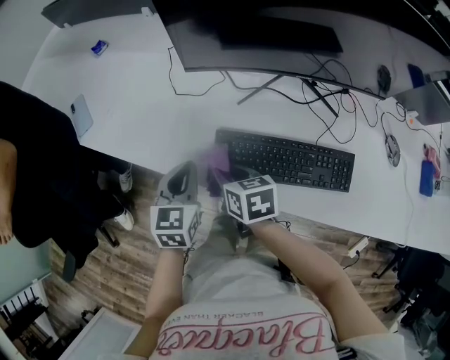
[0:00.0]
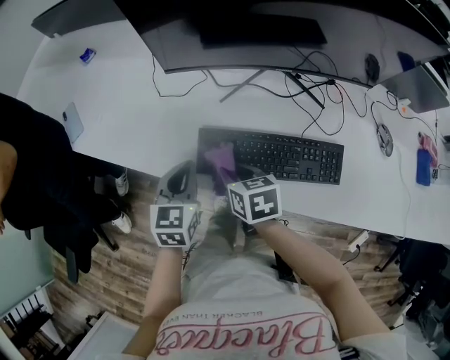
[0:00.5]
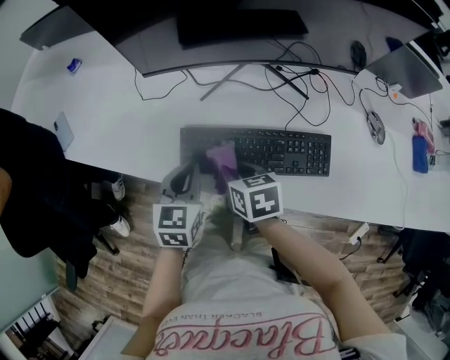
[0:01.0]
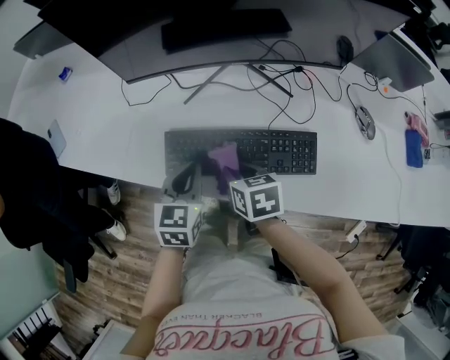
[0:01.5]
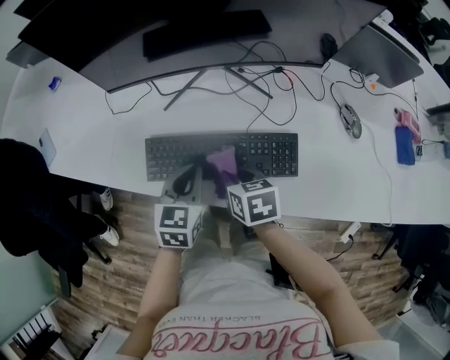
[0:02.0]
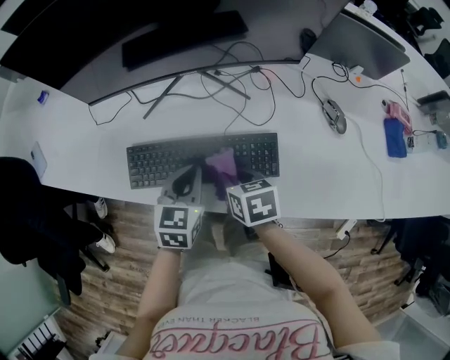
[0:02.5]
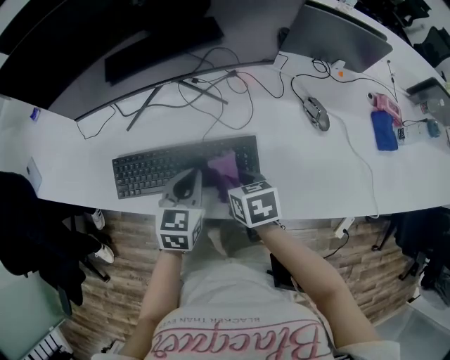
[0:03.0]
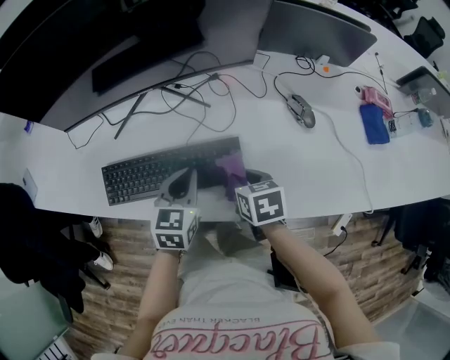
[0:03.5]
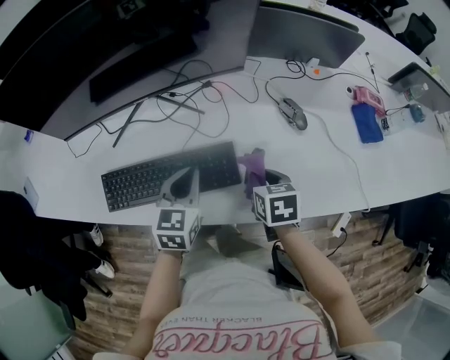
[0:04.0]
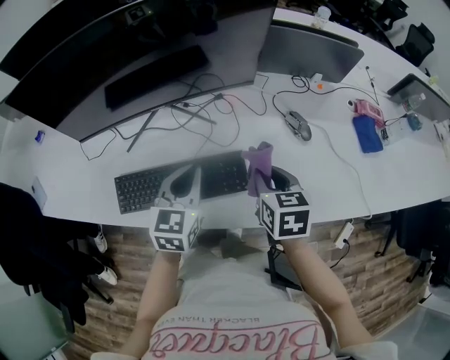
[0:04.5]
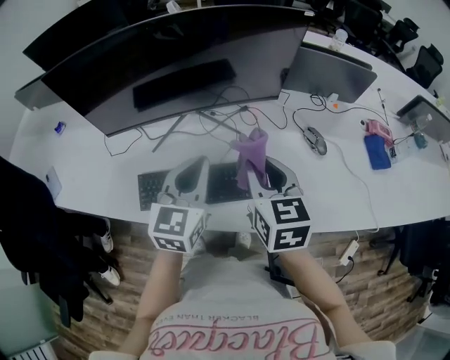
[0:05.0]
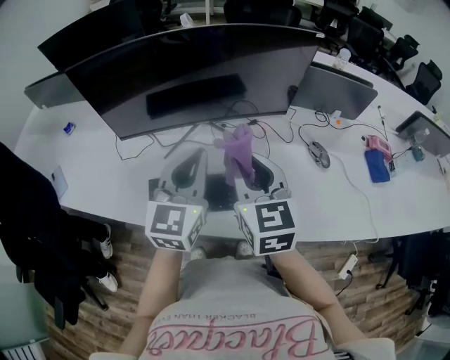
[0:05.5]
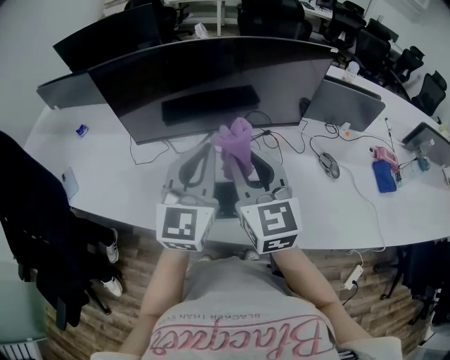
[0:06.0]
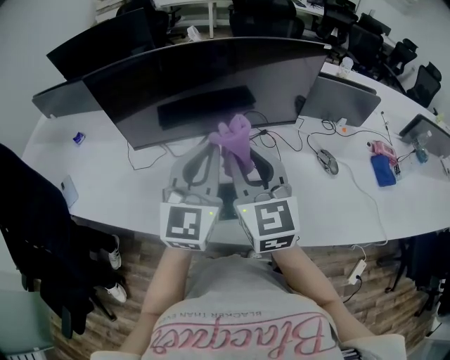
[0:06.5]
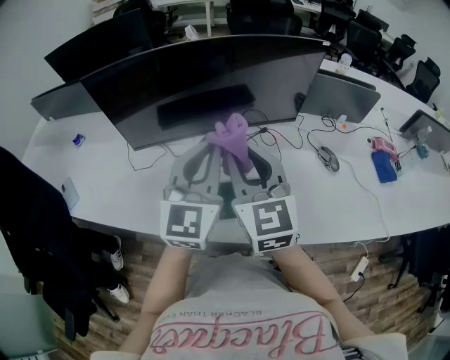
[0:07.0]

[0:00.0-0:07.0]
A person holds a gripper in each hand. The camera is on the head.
0:00.0 to 0:02.0: Both grippers travel together to the right, about 20 cm.
0:02.0 to 0:03.5: Both grippers move to the right, some 15 cm.
0:03.5 to 0:05.0: The two grippers go roughly 20 cm upward. The right gripper swivels some 30 degrees; the left gripper rotates roughly 20 degrees.
0:05.0 to 0:07.0: The left gripper heads upward and to the left, covering roughly 10 cm, and swivels approximately 20 degrees. Meanwhile the right gripper is displaced to the left and upward by roughly 15 cm, and changes its angle by some 20 degrees.

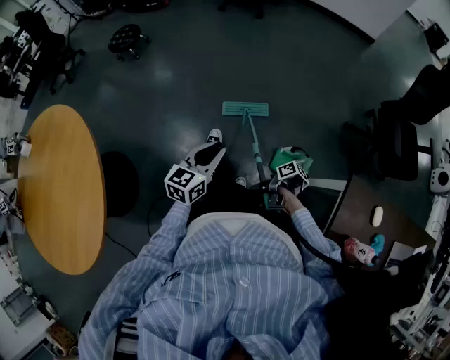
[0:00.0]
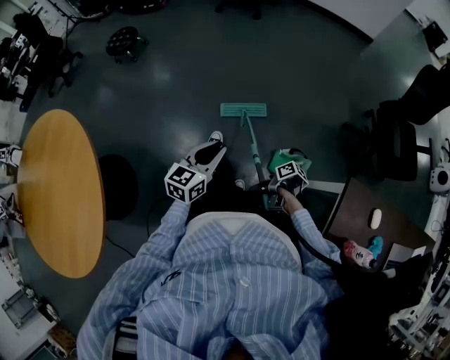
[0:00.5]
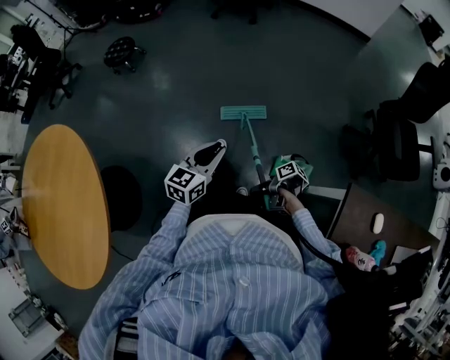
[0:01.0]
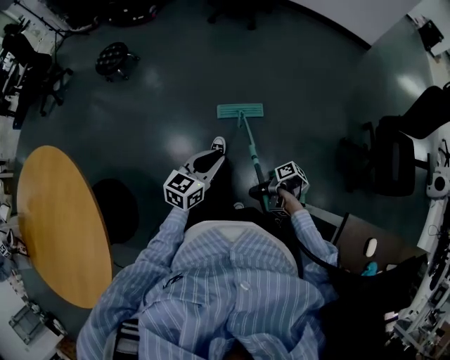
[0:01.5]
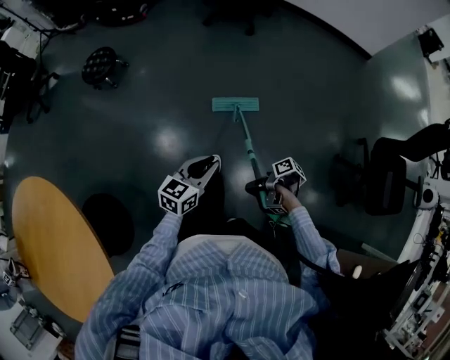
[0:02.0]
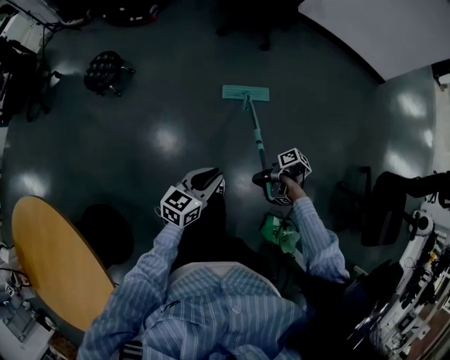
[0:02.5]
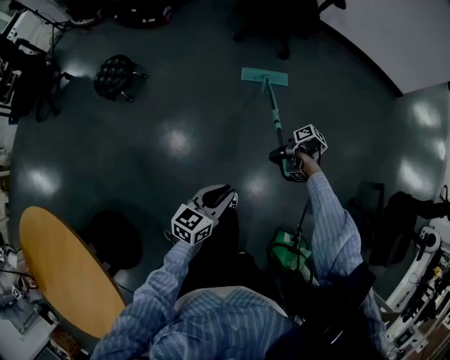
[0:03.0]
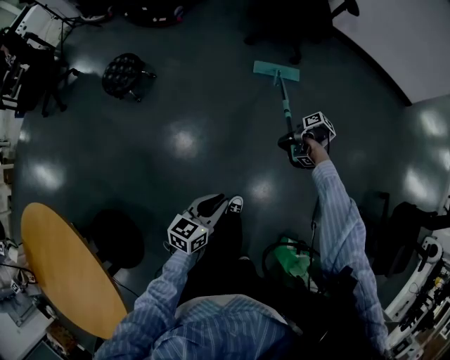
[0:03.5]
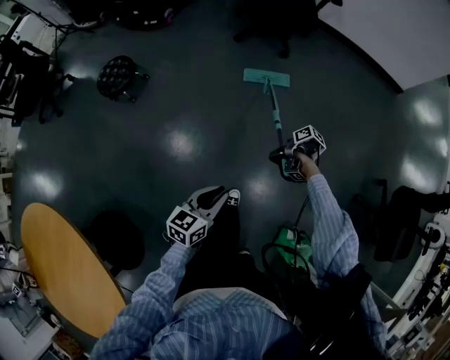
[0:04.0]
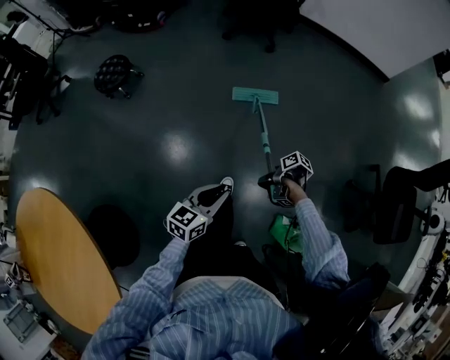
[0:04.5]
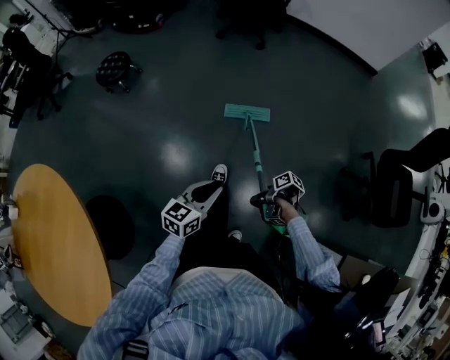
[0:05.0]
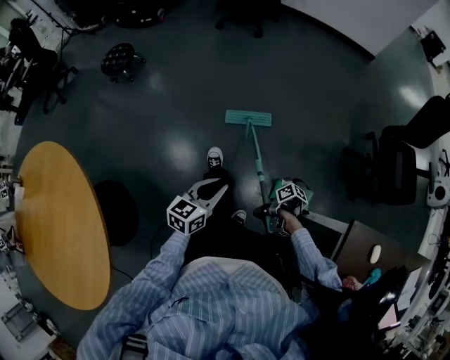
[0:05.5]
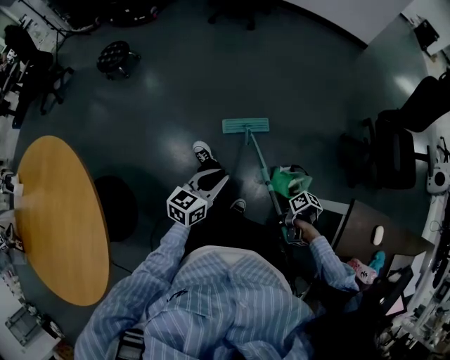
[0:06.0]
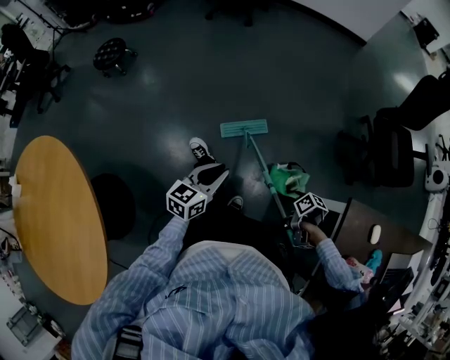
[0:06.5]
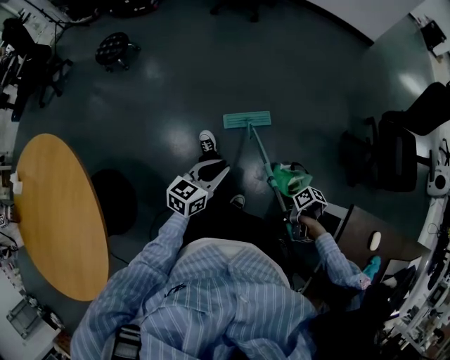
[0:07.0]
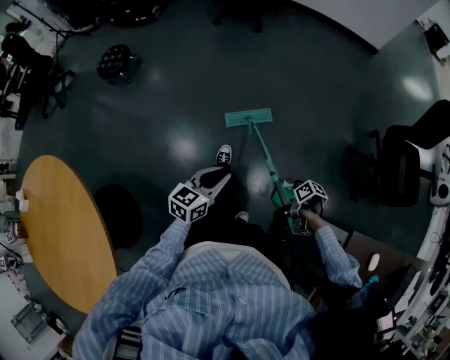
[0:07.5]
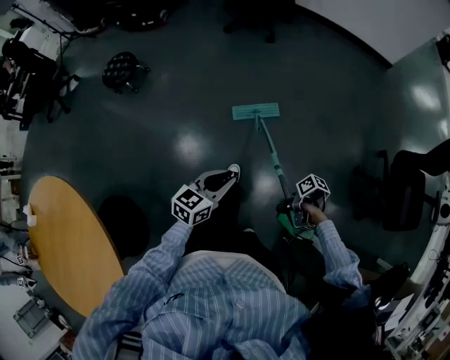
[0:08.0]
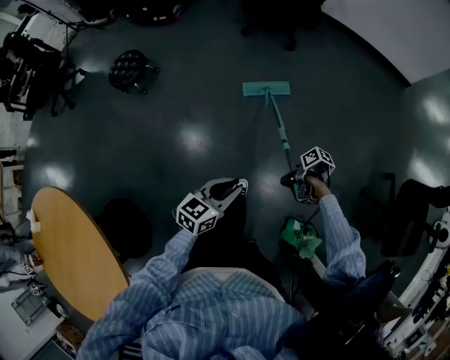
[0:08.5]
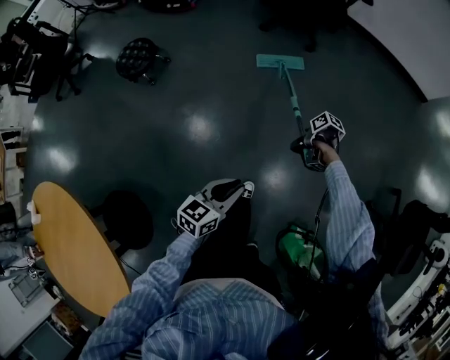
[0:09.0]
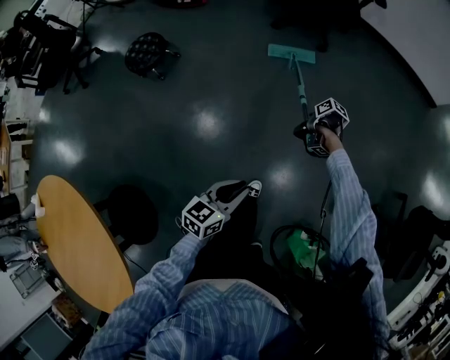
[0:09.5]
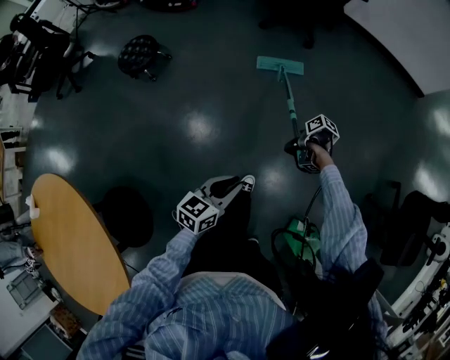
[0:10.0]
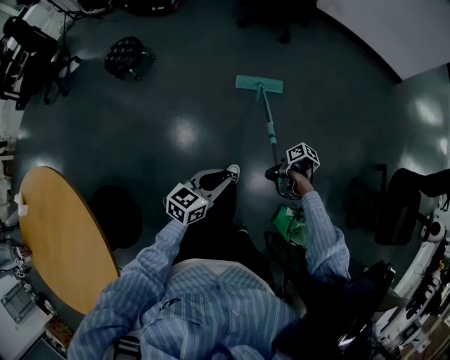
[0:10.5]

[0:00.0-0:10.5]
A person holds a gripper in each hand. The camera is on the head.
0:00.0 to 0:02.0: The left gripper changes place by approximately 35 cm.
0:02.0 to 0:04.0: The left gripper moves some 15 cm.
0:04.0 to 0:06.5: The left gripper shifts by approximately 40 cm.
0:06.5 to 0:08.5: The left gripper ends up roughly 40 cm from where it was.
0:08.5 to 0:10.5: The left gripper changes place by some 10 cm.

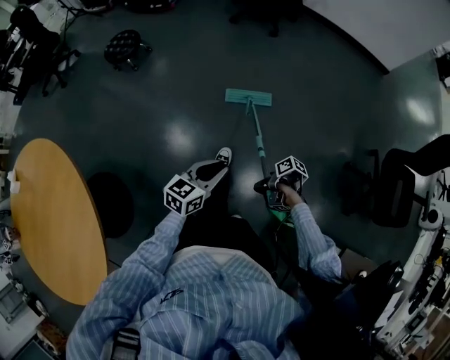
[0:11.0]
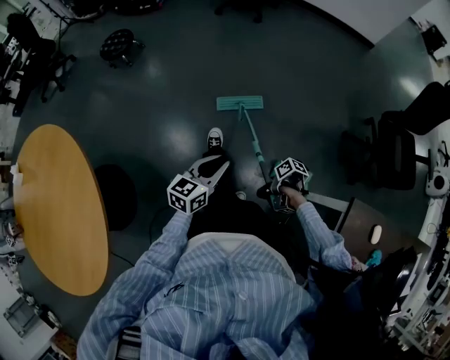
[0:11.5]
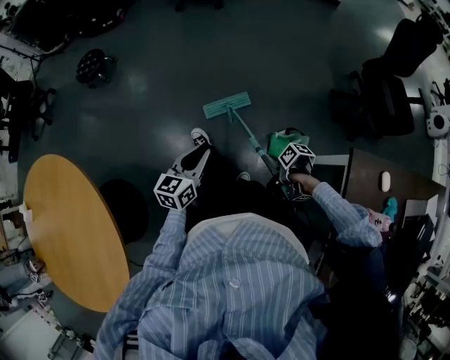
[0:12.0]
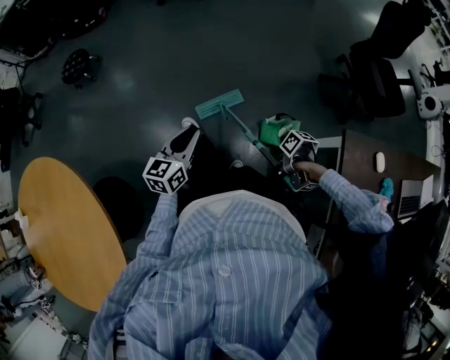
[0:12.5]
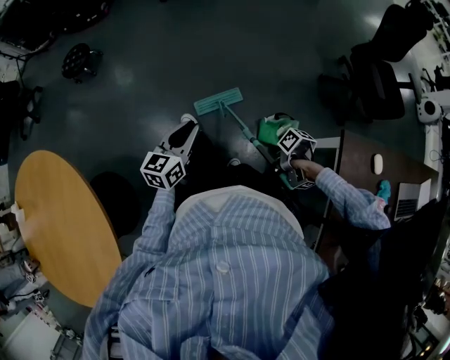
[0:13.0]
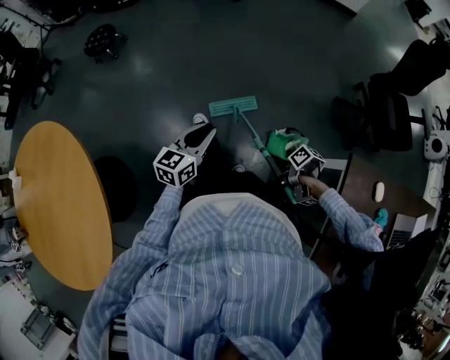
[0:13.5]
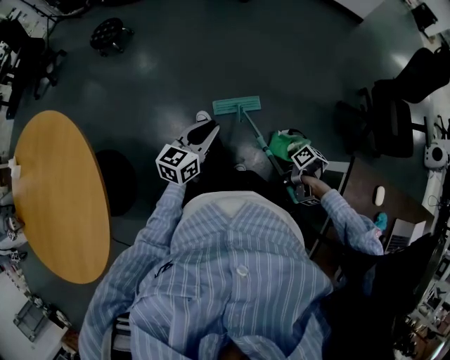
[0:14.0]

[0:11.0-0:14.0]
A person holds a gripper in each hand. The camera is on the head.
0:11.0 to 0:12.5: The left gripper moves about 20 cm.

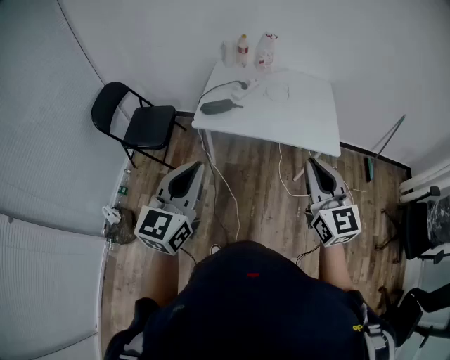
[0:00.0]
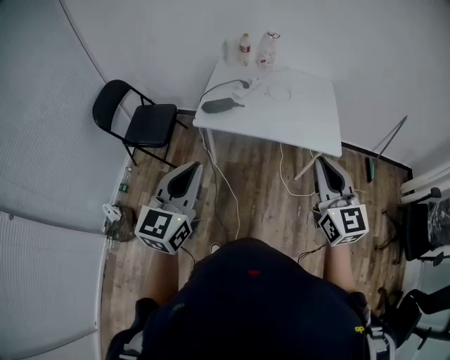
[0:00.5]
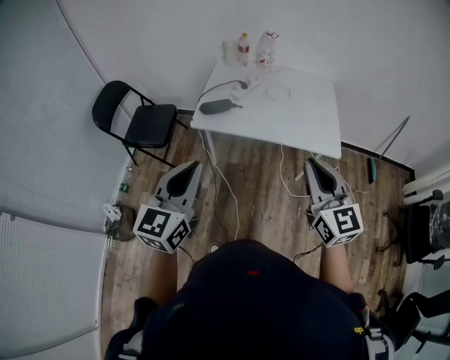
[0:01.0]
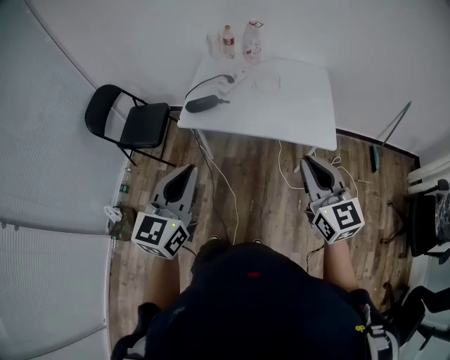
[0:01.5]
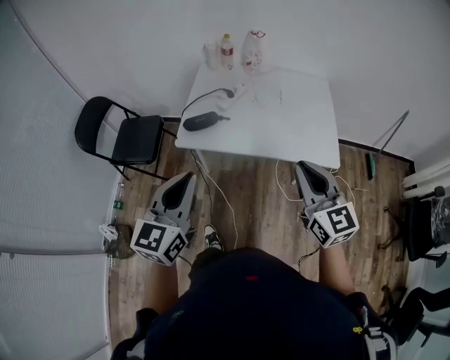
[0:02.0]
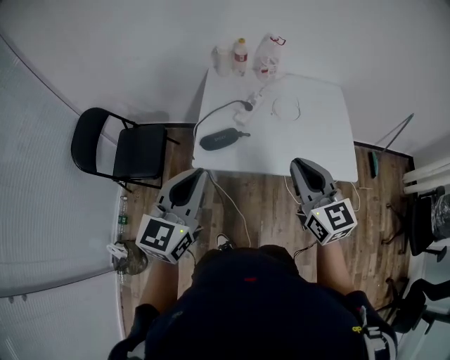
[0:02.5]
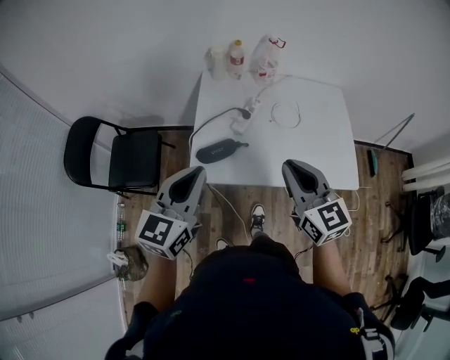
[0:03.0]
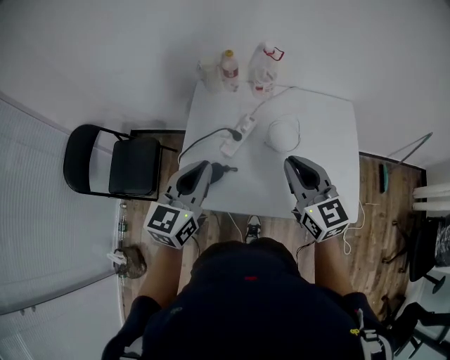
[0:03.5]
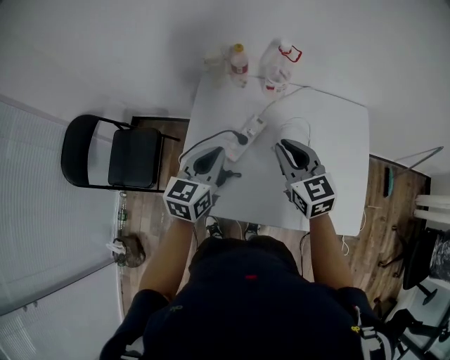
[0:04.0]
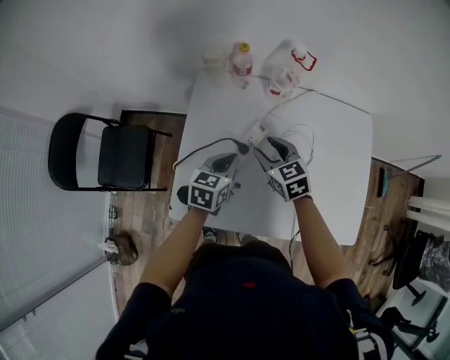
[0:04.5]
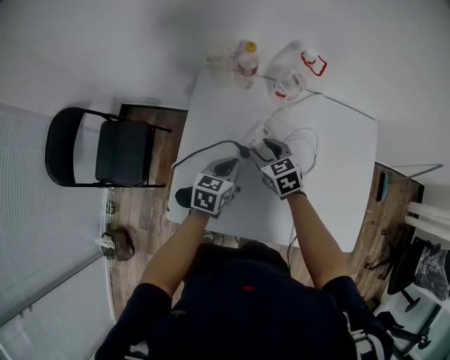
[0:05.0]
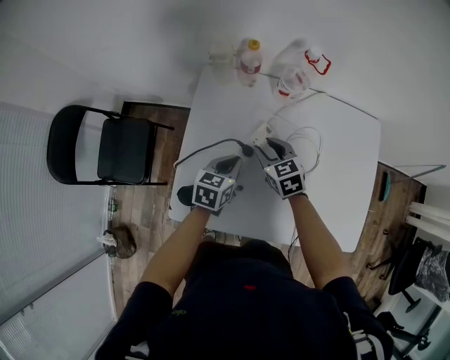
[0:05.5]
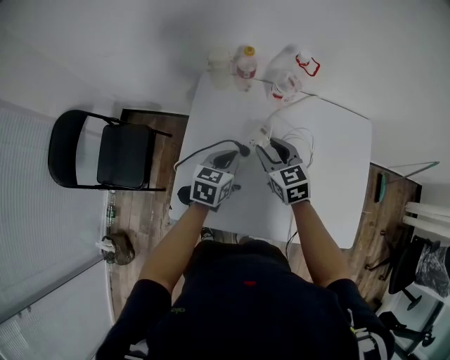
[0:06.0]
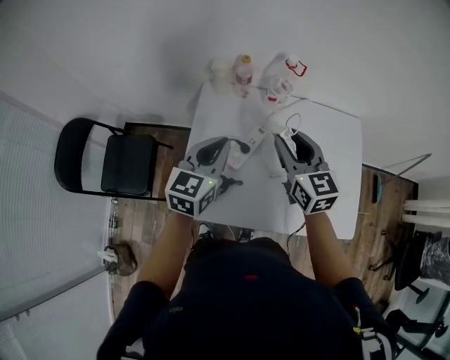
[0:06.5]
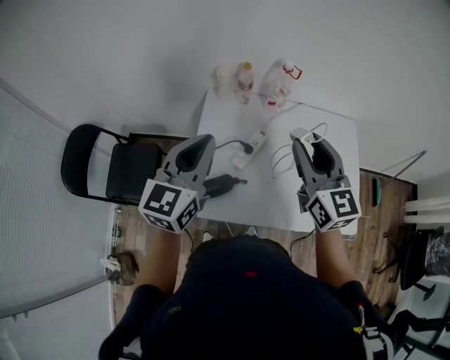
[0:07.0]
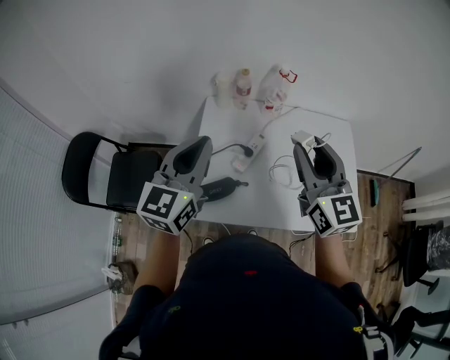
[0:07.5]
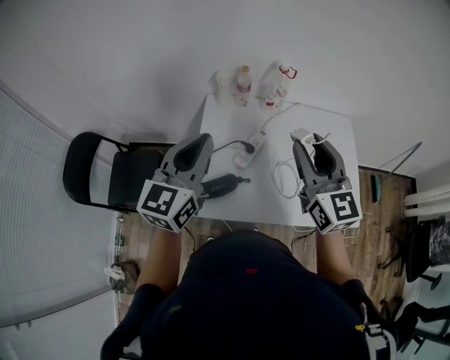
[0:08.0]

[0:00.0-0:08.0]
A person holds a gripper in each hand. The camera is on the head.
0:00.0 to 0:02.0: The two grippers go some 15 cm forward.
0:02.0 to 0:04.0: The two grippers travel together, forward, approximately 50 cm.
0:04.0 to 0:06.0: The left gripper shifts approximately 15 cm downward and forward. Meanwhile the right gripper travels downward, forward and to the left by roughly 15 cm, and opens up.
0:06.0 to 0:08.0: Both grippers move upward and backward, approximately 35 cm. The right gripper points its fingers roughly 30 degrees further upward. Meanwhile the left gripper tips its fingers upward by some 30 degrees.
